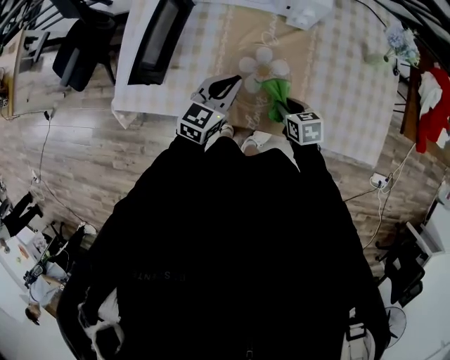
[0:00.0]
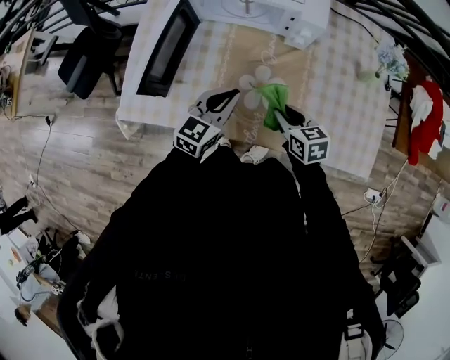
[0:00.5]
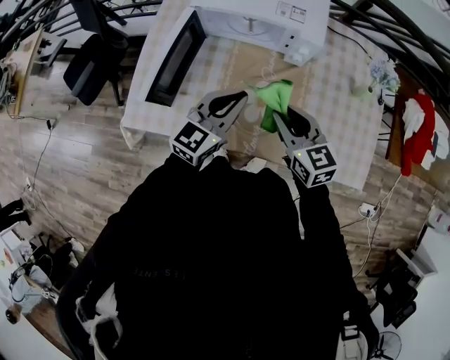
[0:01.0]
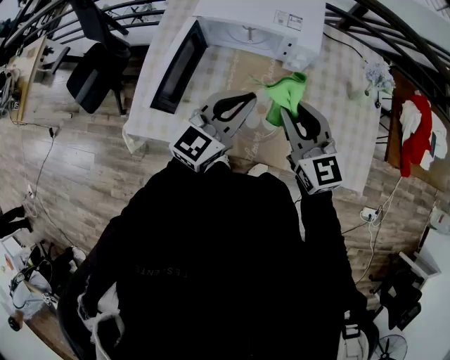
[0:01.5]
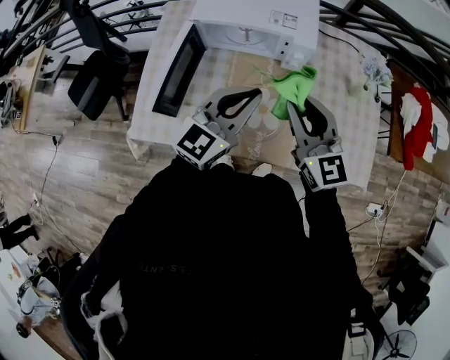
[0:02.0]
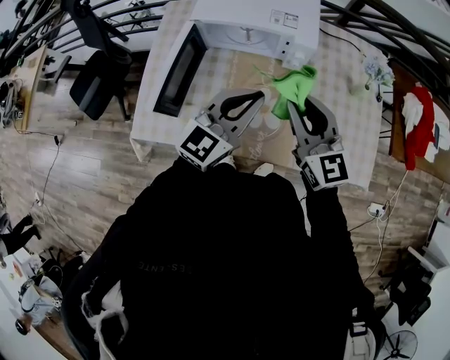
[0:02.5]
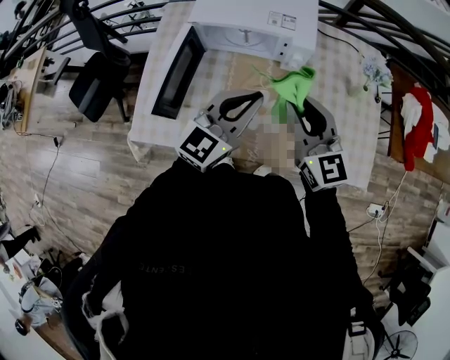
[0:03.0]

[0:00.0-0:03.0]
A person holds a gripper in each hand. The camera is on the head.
0:00.0 to 0:01.5: The left gripper goes about 20 cm upward, and rotates roughly 20 degrees. The right gripper travels upward by about 35 cm, and tips its fingers upward by roughly 40 degrees.
0:01.5 to 0:03.0: There are only small adjustments of the grippers.

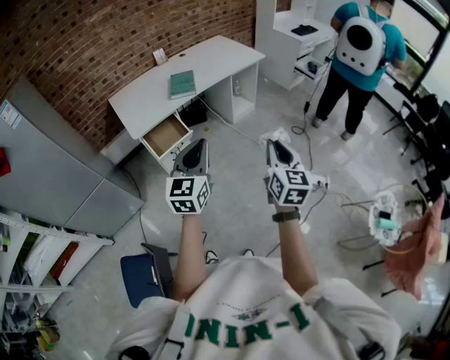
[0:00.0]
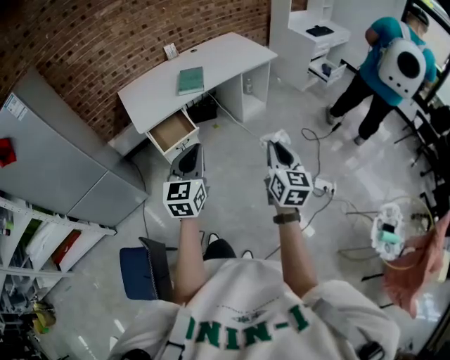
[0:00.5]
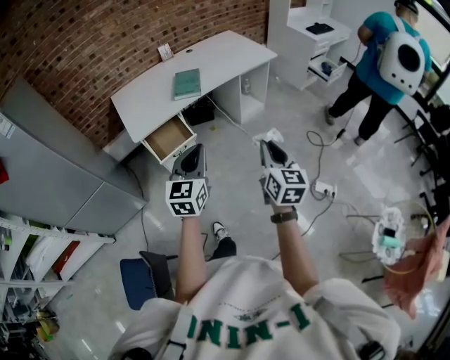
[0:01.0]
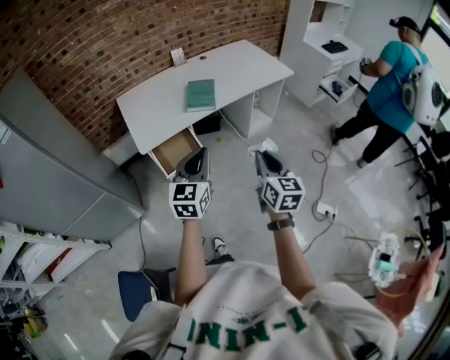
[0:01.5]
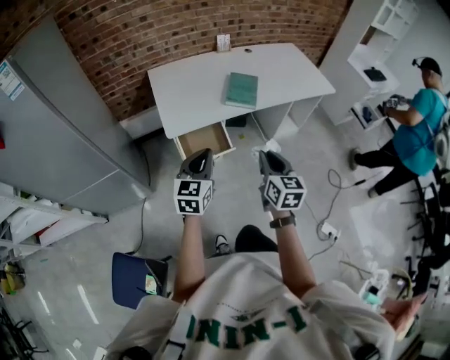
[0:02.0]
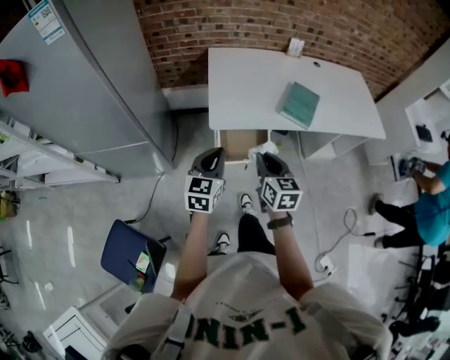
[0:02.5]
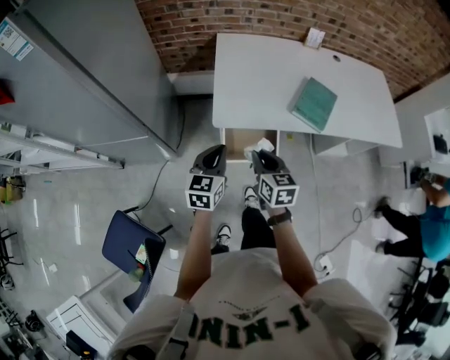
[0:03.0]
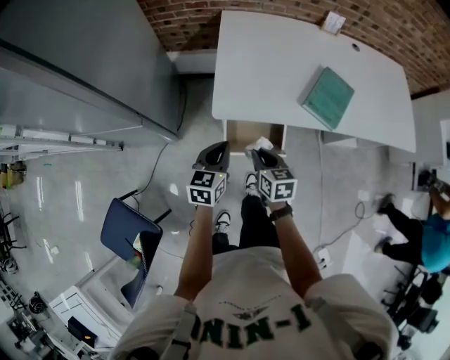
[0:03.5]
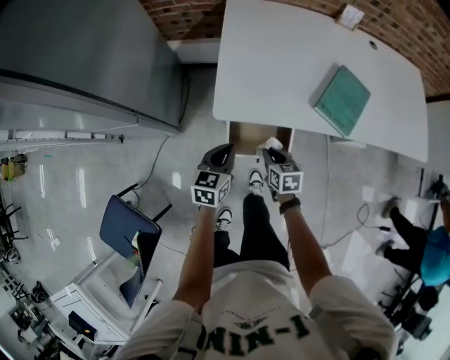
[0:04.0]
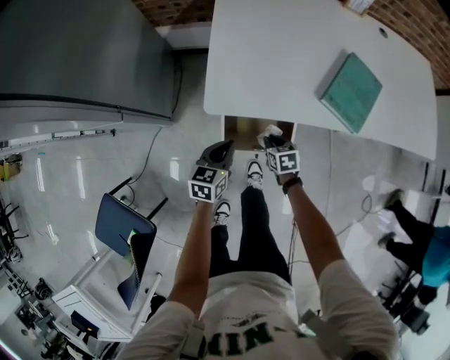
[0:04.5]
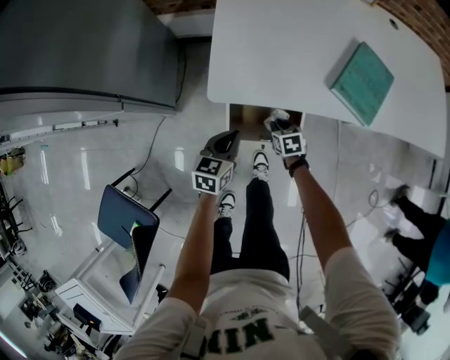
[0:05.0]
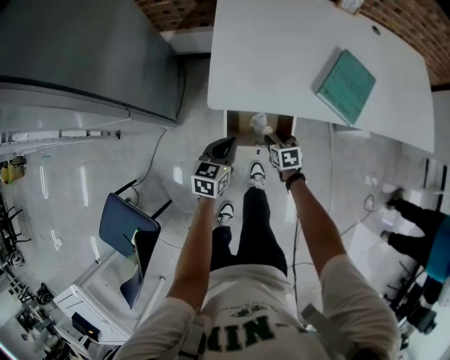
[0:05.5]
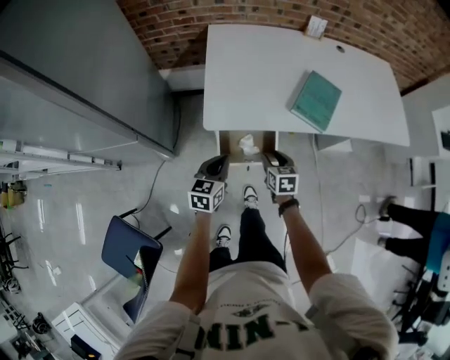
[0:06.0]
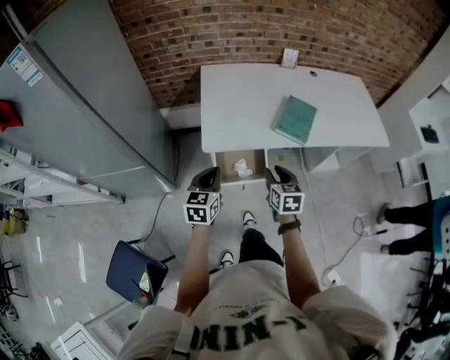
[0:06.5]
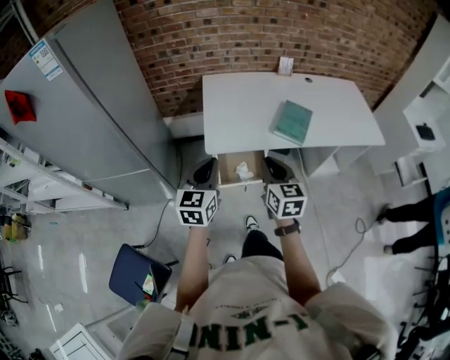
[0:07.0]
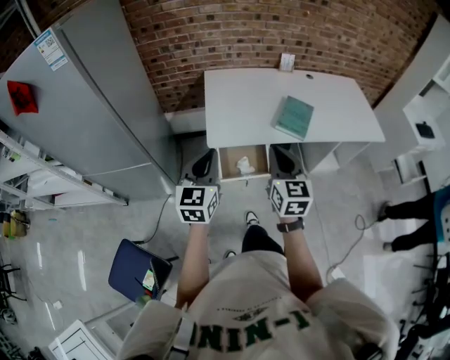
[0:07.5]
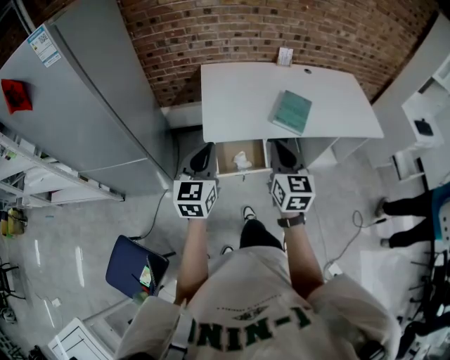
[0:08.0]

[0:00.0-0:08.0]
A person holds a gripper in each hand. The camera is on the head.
0:00.0 to 0:02.0: The right gripper heads forward and to the left, covering roughly 35 cm, and swivels roughly 30 degrees. The left gripper travels forward, to the left and downward by approximately 35 cm.
0:02.0 to 0:04.0: Both grippers move downward, approximately 30 cm. The right gripper tilts its fingers some 30 degrees downward. The left gripper swivels about 30 degrees.
0:04.0 to 0:06.0: The right gripper travels downward and back again, roughly 15 cm each way, and opens up. Meanwhile the left gripper moves approximately 10 cm downward and comes back.
0:06.0 to 0:08.0: The two grippers go approximately 30 cm upward. The left gripper swivels about 30 degrees. Meanwhile the right gripper tilts its fingers about 40 degrees upward, and closes its fingers.

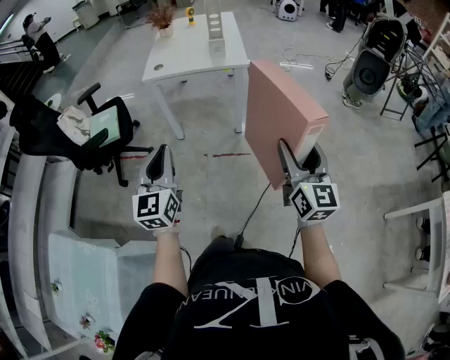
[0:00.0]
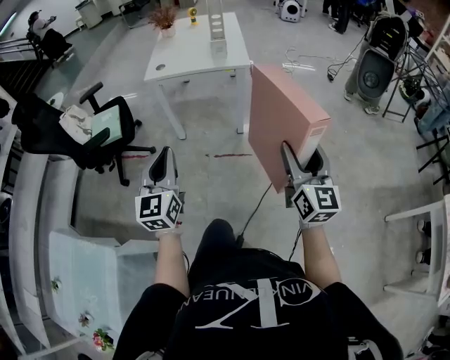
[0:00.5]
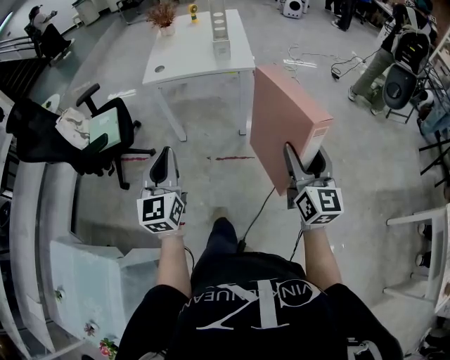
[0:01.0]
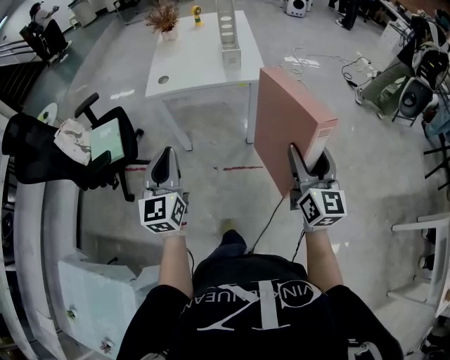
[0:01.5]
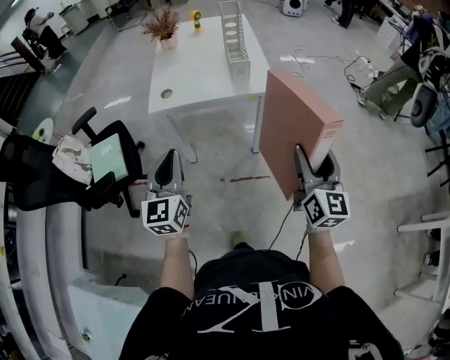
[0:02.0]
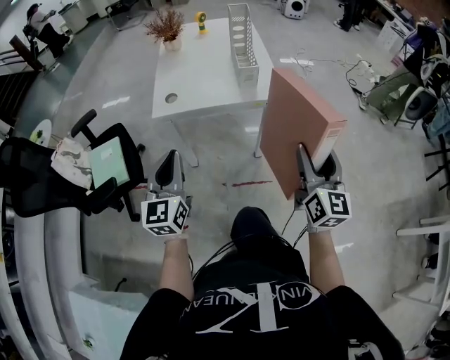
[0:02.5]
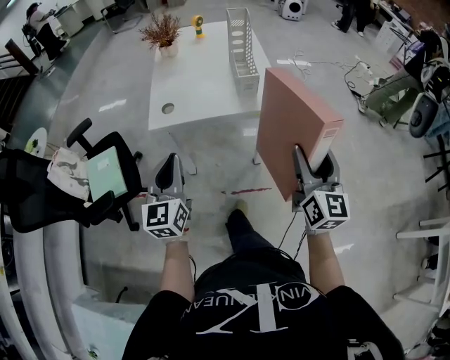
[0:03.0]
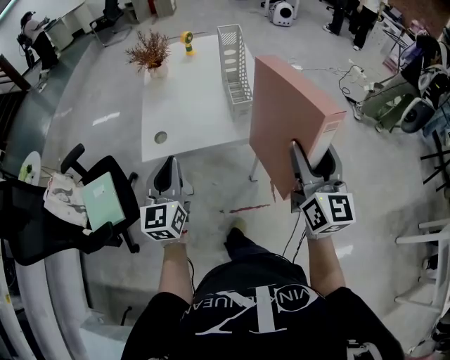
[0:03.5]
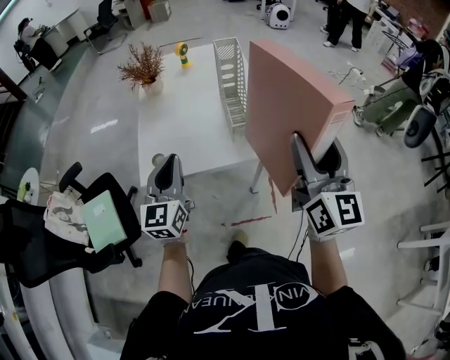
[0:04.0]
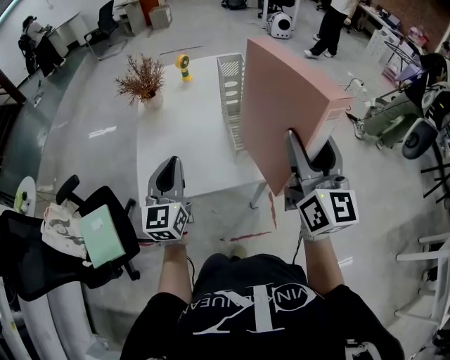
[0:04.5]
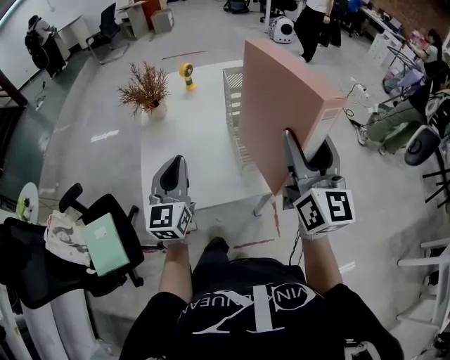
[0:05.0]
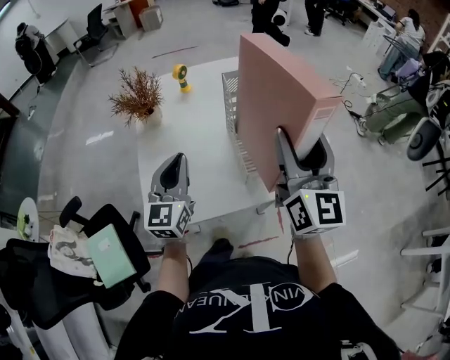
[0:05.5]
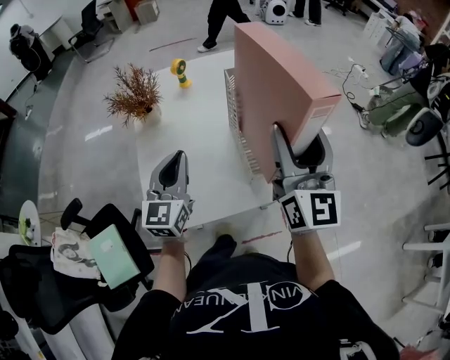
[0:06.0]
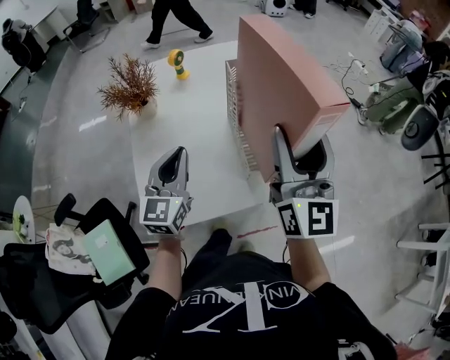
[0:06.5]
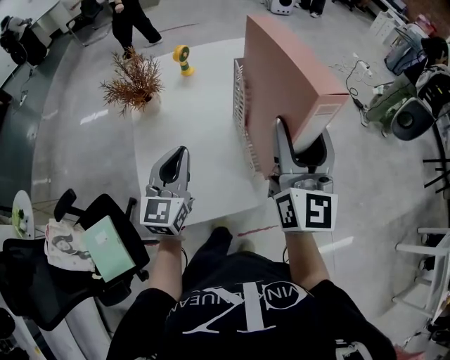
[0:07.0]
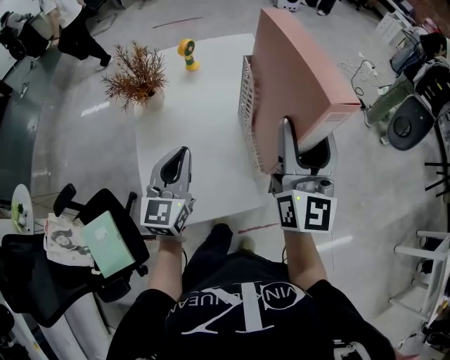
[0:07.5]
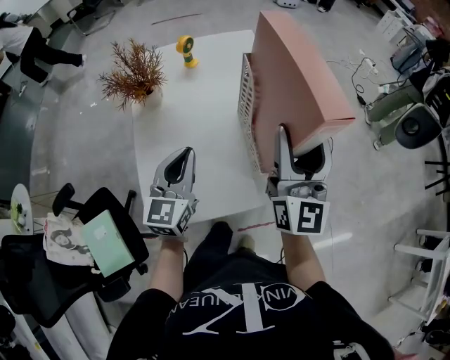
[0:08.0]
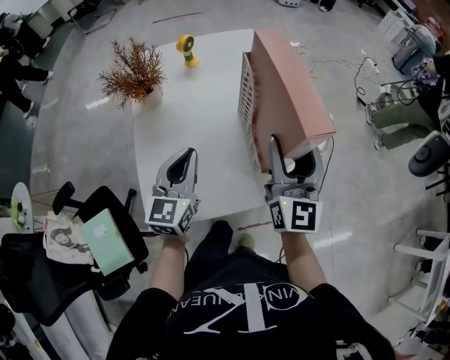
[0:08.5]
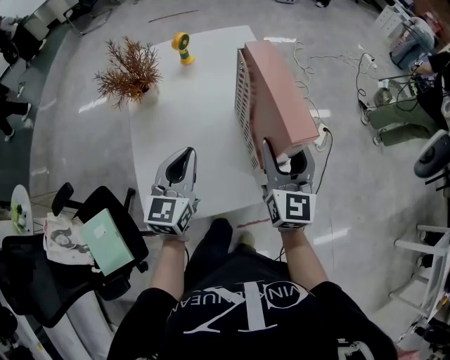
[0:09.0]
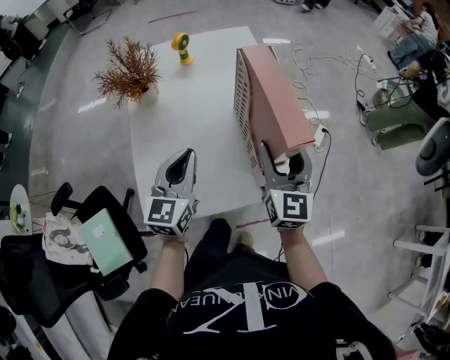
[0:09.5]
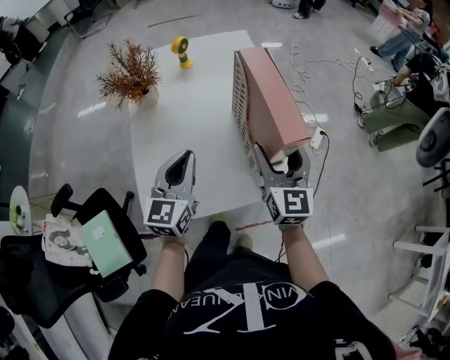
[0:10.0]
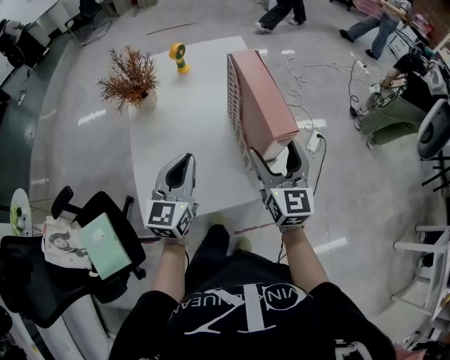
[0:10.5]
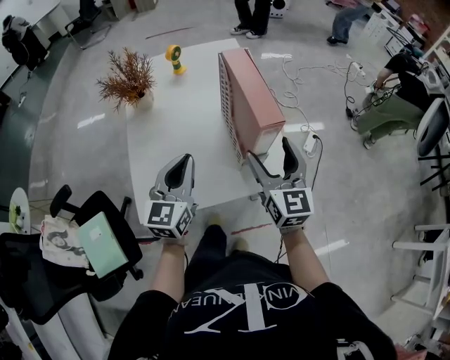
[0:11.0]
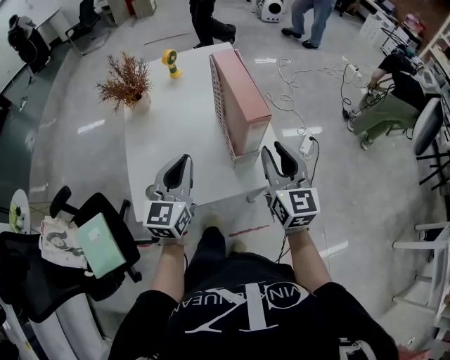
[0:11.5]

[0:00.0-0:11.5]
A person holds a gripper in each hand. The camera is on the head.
0:00.0 to 0:02.0: Both grippers move forward, roughly 30 cm.
0:02.0 to 0:04.0: The left gripper is displaced forward by about 30 cm. The right gripper heads forward and upward, covering approximately 30 cm.
0:04.0 to 0:06.0: The right gripper goes approximately 25 cm forward and to the left; the left gripper is displaced forward by roughly 20 cm.
0:06.0 to 0:07.5: The right gripper ends up approximately 5 cm from where it was.
0:07.5 to 0:09.5: The right gripper shifts approximately 15 cm downward, and swivels some 20 degrees.
0:09.5 to 0:11.5: Both grippers move backward and to the right, approximately 10 cm. The right gripper closes its fingers.

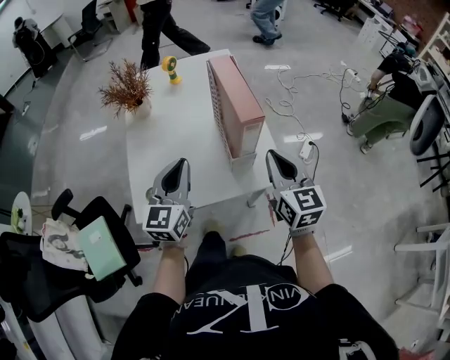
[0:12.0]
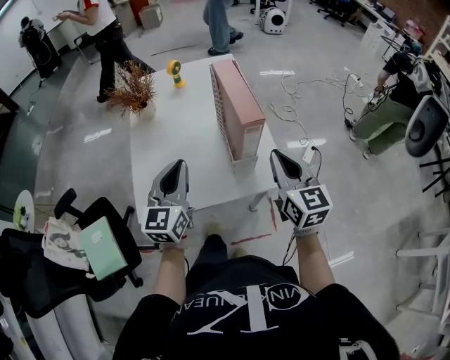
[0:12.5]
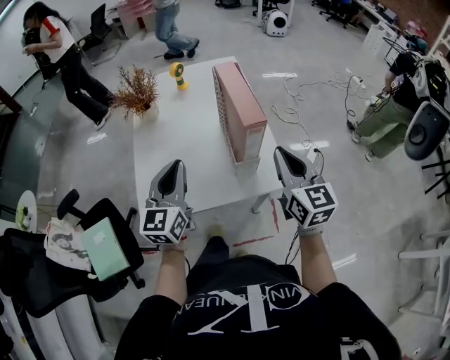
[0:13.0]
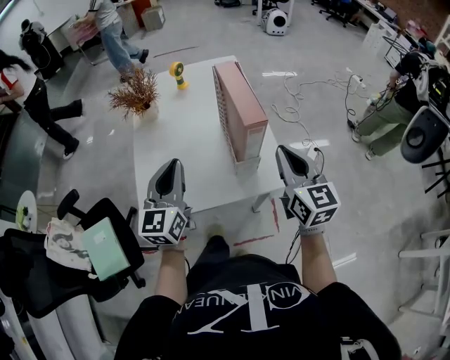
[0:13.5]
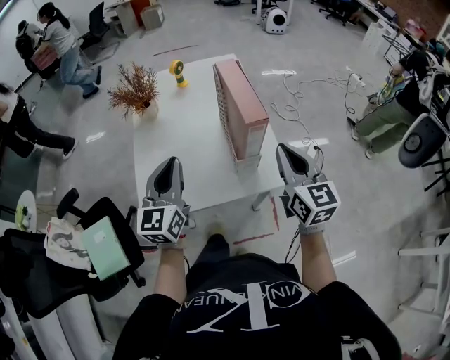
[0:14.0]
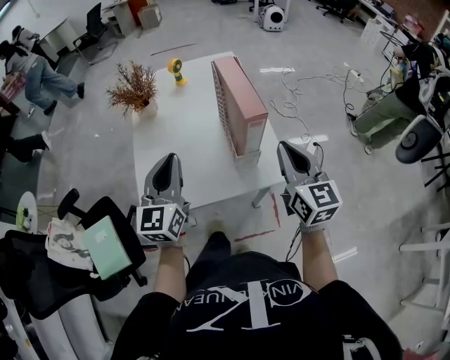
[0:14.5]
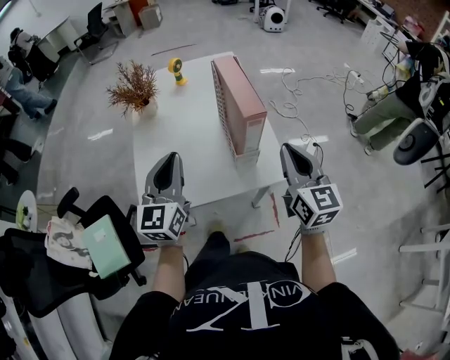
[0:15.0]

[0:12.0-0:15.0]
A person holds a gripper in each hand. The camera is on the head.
0:12.0 to 0:15.0: The grippers stay close to where they were, moving slightly.
